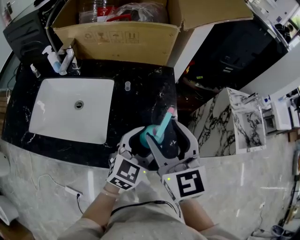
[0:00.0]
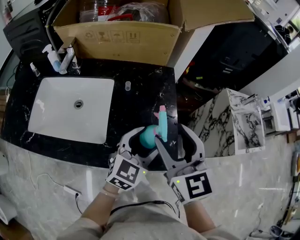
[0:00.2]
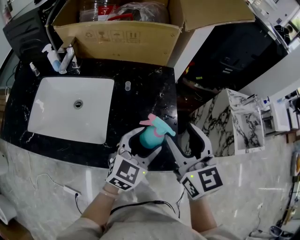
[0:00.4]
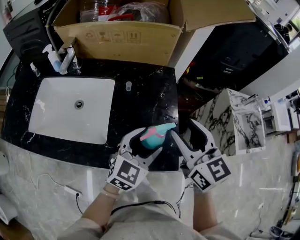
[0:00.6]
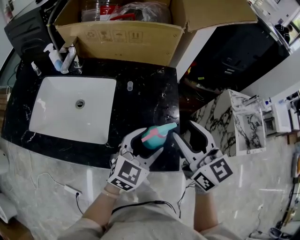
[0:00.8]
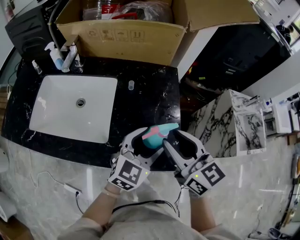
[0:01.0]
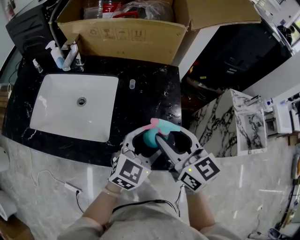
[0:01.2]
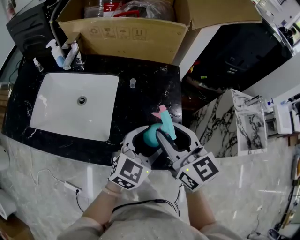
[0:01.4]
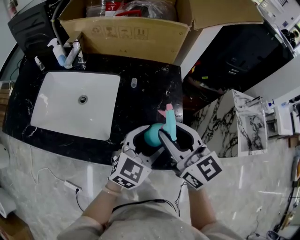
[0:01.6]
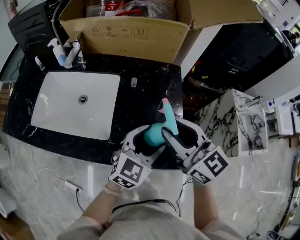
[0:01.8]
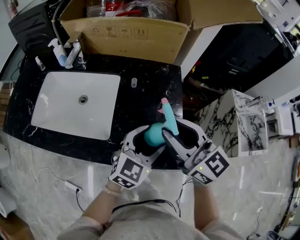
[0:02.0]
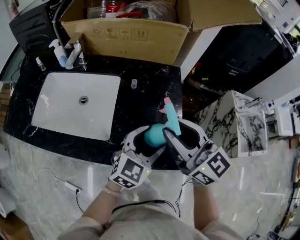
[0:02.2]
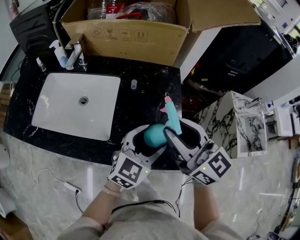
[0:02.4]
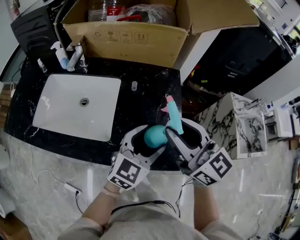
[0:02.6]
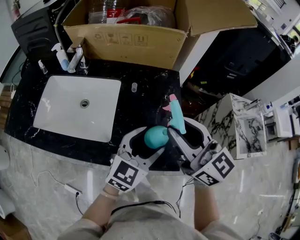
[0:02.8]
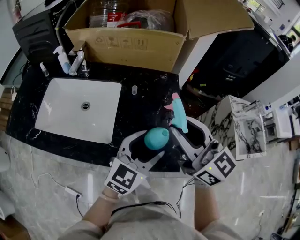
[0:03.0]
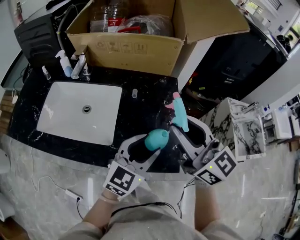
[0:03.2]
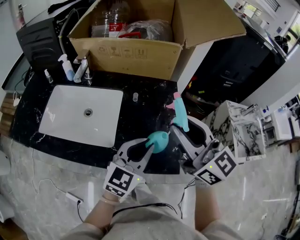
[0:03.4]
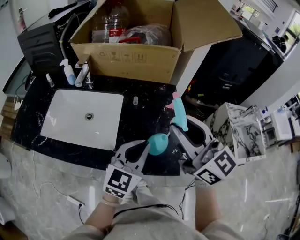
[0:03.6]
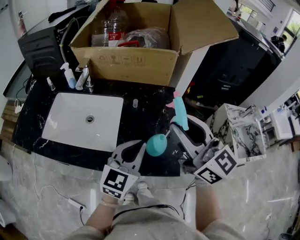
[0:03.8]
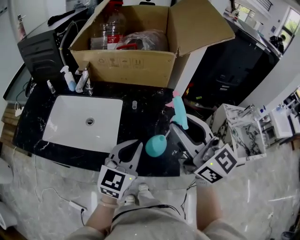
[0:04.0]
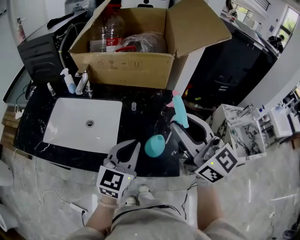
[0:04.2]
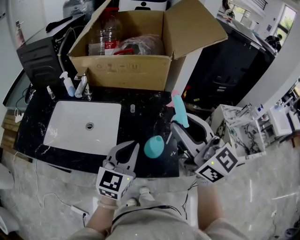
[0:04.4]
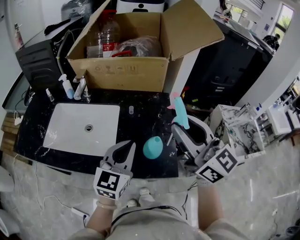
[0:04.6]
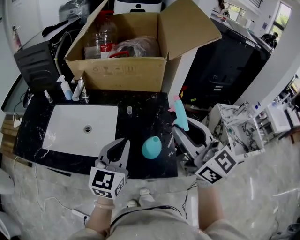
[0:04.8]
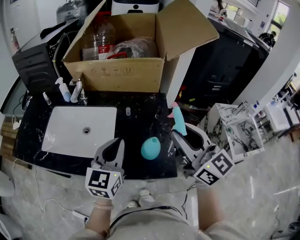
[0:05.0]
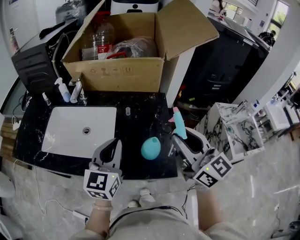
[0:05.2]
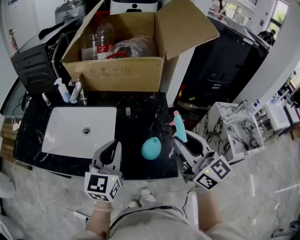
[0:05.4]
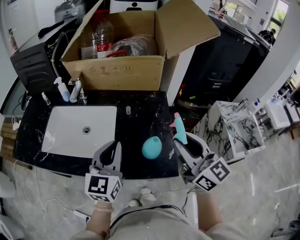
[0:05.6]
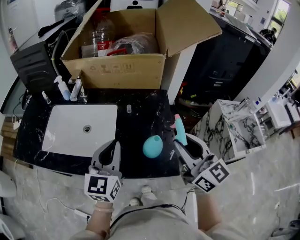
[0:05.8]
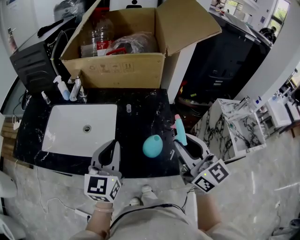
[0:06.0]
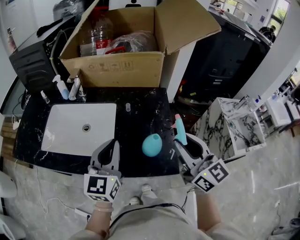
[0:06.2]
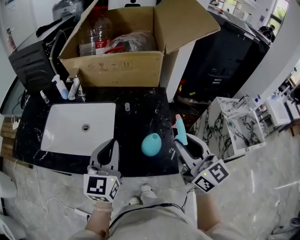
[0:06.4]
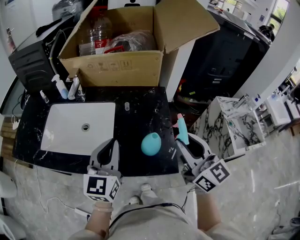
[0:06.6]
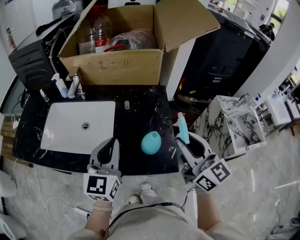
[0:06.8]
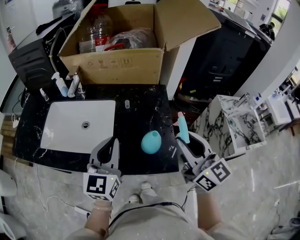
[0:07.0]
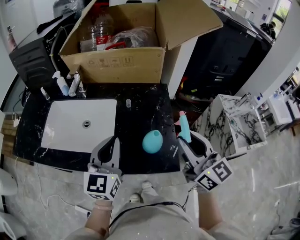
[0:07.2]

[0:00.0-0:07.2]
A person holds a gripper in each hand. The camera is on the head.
0:00.0 to 0:01.4: The right gripper closes up.
0:01.4 to 0:02.8: The right gripper is displaced upward by about 5 cm.
0:02.8 to 0:04.4: The left gripper is displaced to the left and upward by roughly 10 cm, and closes its fingers. The right gripper shifts approximately 10 cm upward.
0:04.4 to 0:05.8: The left gripper is displaced to the left by roughly 5 cm; the right gripper goes approximately 10 cm downward.
0:05.8 to 0:07.2: The grippers make only small movements.

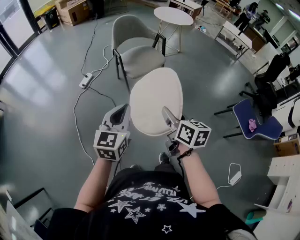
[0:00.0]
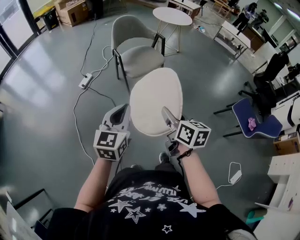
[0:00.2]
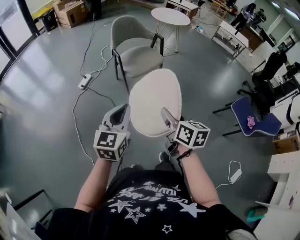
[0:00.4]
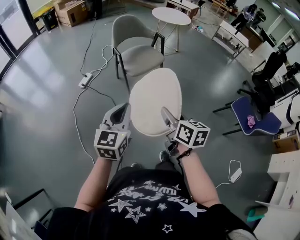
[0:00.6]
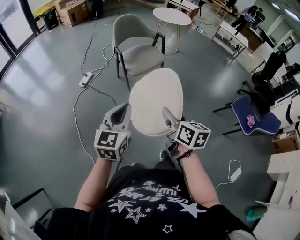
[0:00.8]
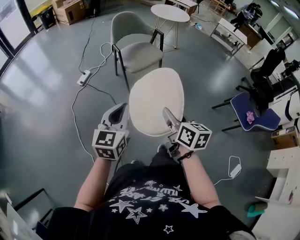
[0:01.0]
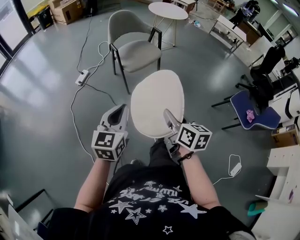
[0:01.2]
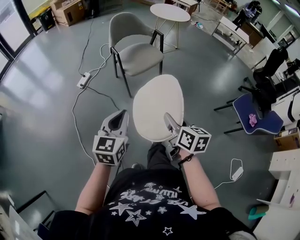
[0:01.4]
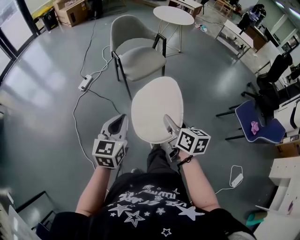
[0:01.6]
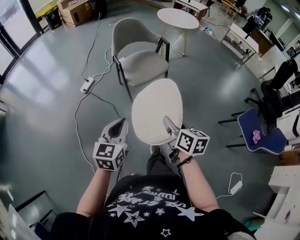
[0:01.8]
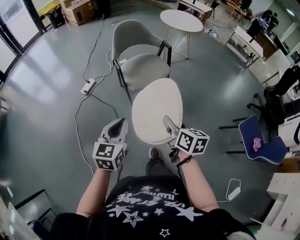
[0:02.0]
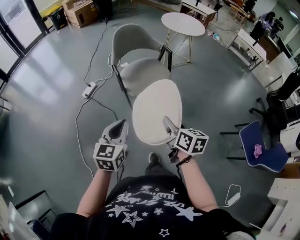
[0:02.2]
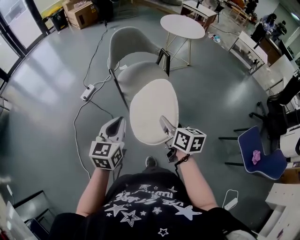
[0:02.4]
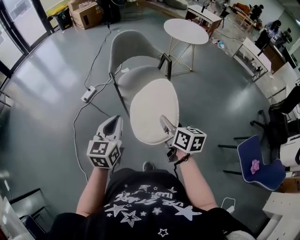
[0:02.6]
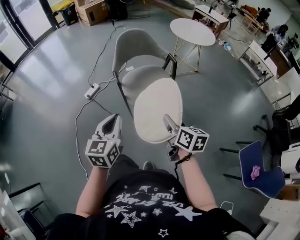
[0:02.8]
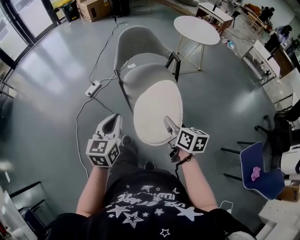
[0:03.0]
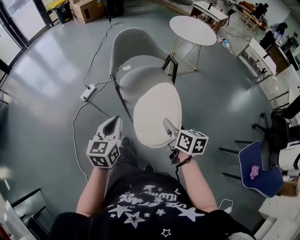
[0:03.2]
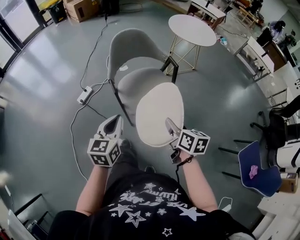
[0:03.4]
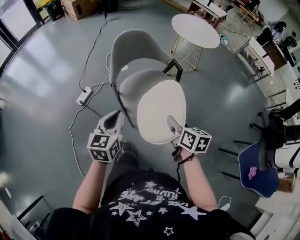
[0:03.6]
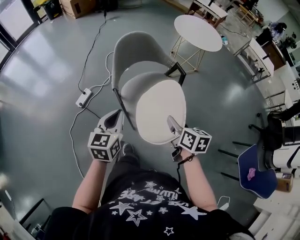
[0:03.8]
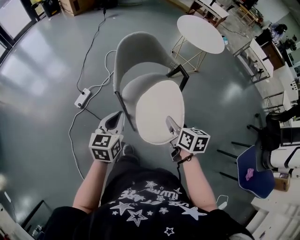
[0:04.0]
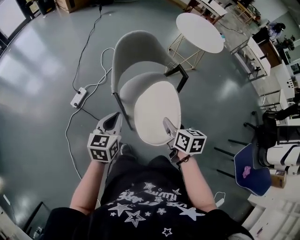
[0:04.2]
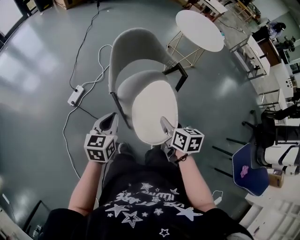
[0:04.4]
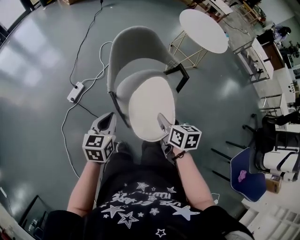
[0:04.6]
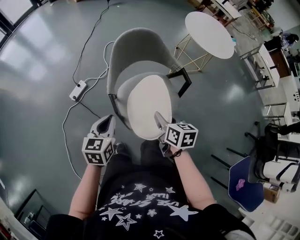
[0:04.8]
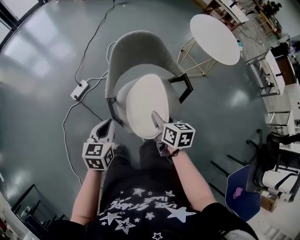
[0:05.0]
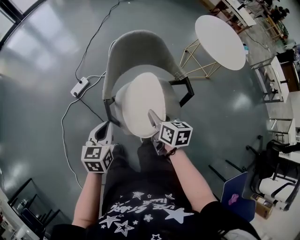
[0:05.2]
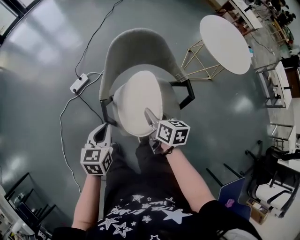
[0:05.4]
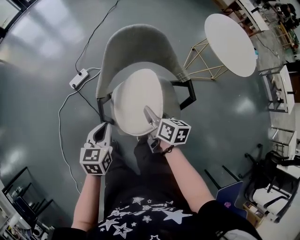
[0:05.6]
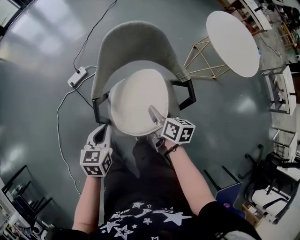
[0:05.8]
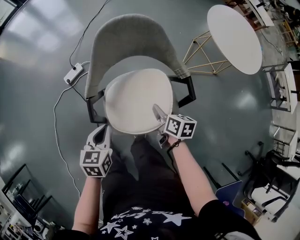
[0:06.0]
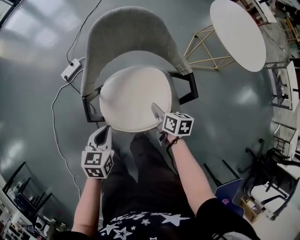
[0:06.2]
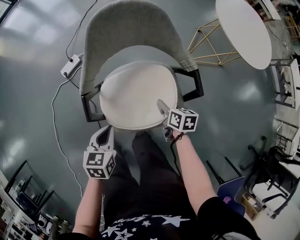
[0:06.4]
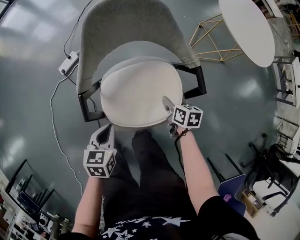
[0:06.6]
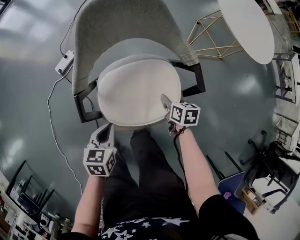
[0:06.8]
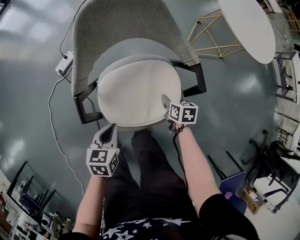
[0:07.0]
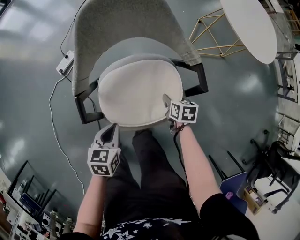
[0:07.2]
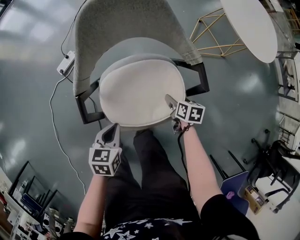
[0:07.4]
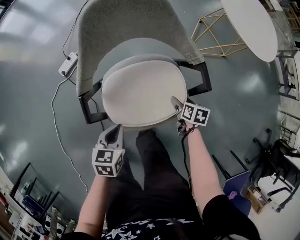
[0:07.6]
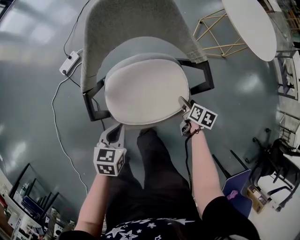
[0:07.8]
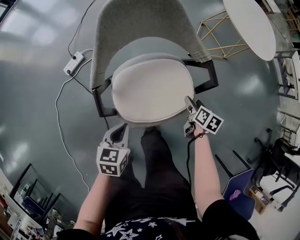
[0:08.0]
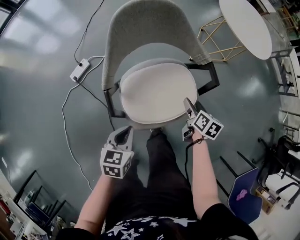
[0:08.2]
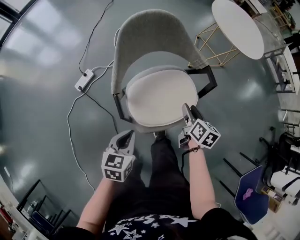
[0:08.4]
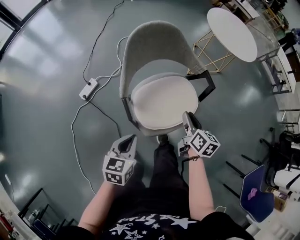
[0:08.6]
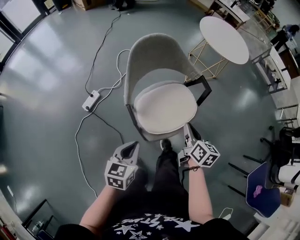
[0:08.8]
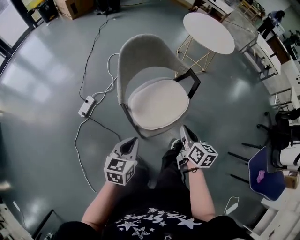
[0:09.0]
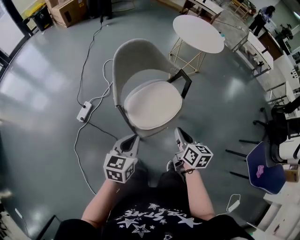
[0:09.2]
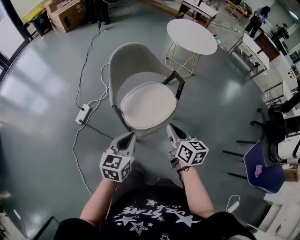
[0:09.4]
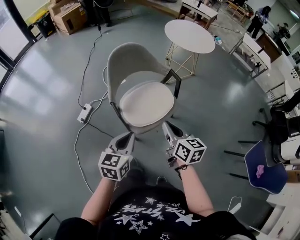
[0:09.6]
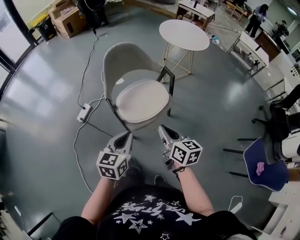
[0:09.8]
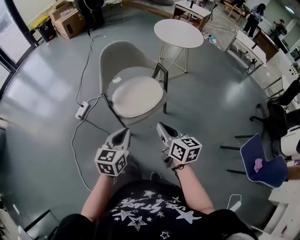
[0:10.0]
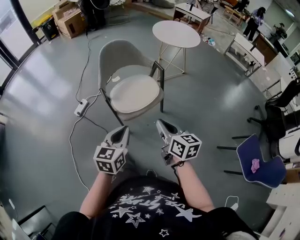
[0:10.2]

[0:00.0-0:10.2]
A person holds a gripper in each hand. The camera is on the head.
0:00.0 to 0:01.4: The left gripper moves roughly 5 cm. Meanwhile the right gripper ends up approximately 5 cm from where it was.
0:01.4 to 0:03.0: Both grippers travel together forward, about 30 cm.
0:03.0 to 0:04.4: The left gripper is displaced forward and downward by roughly 30 cm; the right gripper shifts approximately 20 cm forward.
0:04.4 to 0:05.8: The left gripper is displaced downward and to the right by roughly 15 cm, and turns by roughly 30 degrees, while the right gripper travels forward, downward and to the right by roughly 20 cm, and turns by about 20 degrees.
0:05.8 to 0:07.2: The left gripper shifts roughly 10 cm downward; the right gripper shifts roughly 25 cm downward and to the right, and changes its angle by roughly 30 degrees.
0:07.2 to 0:08.8: The left gripper shifts approximately 15 cm upward, and rotates about 30 degrees. The right gripper travels upward by some 25 cm, changes its angle by approximately 40 degrees, and opens, then closes once more.
0:08.8 to 0:10.2: The left gripper heads to the right, upward and backward, covering approximately 25 cm, while the right gripper goes approximately 25 cm backward and upward.

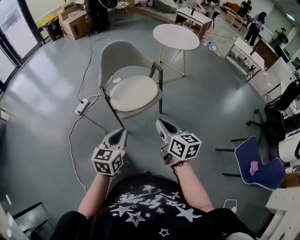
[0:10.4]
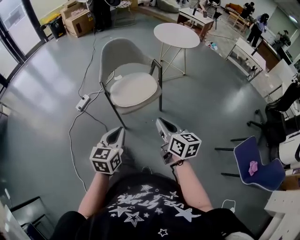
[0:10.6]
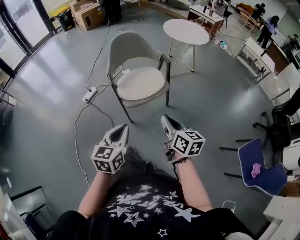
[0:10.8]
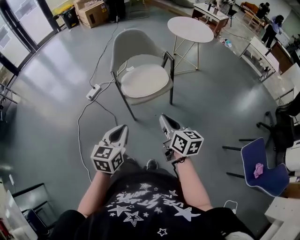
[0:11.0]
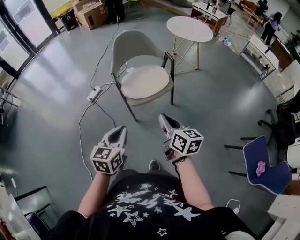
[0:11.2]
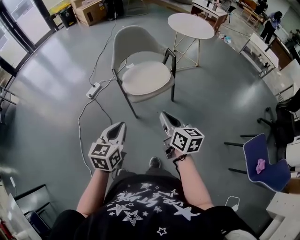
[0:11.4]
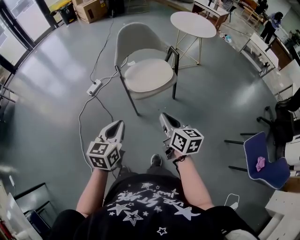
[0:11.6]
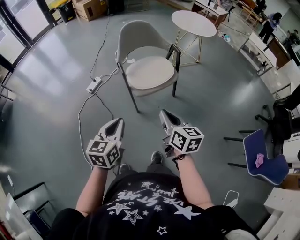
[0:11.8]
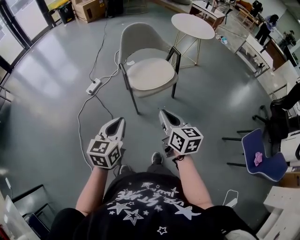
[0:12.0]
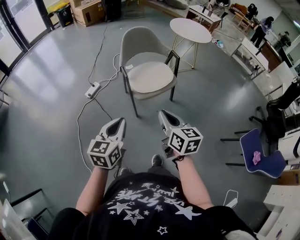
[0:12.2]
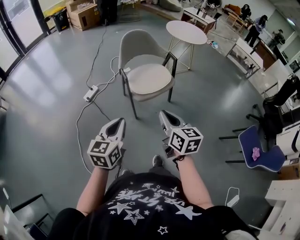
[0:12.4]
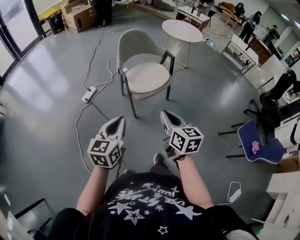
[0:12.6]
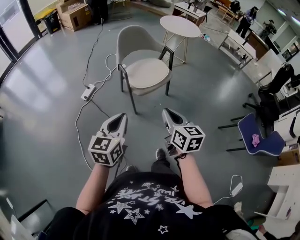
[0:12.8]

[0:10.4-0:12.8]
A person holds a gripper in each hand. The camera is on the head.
0:10.4 to 0:11.6: The left gripper moves to the left and backward, roughly 10 cm; the right gripper is displaced backward and to the left by approximately 10 cm.
0:11.6 to 0:12.8: The right gripper goes roughly 15 cm to the left, backward and upward, while the left gripper moves to the left, roughly 10 cm.

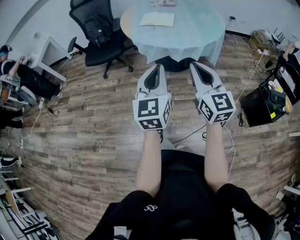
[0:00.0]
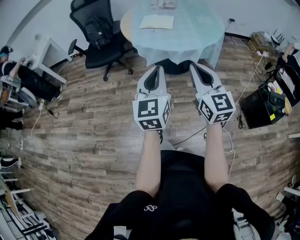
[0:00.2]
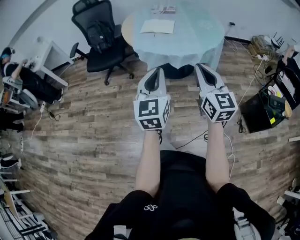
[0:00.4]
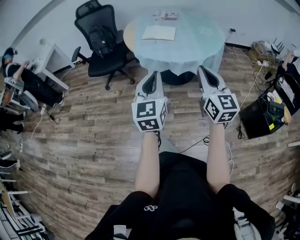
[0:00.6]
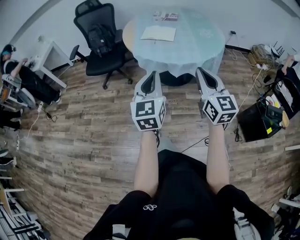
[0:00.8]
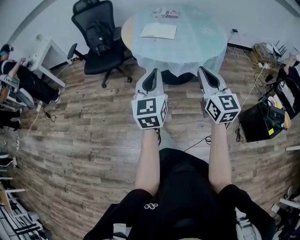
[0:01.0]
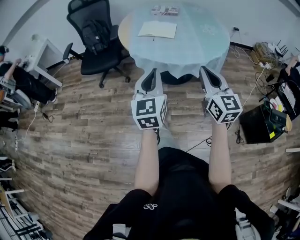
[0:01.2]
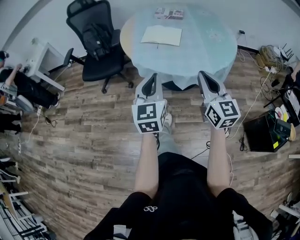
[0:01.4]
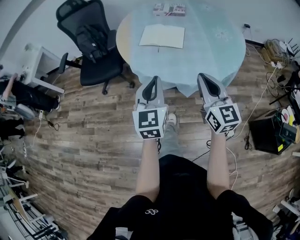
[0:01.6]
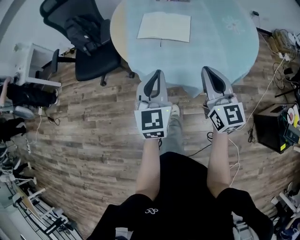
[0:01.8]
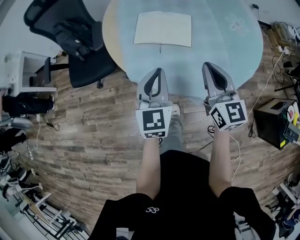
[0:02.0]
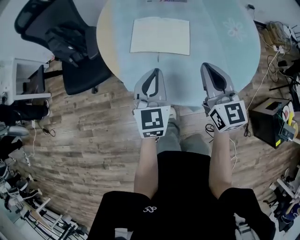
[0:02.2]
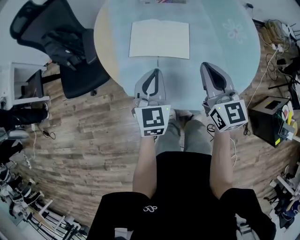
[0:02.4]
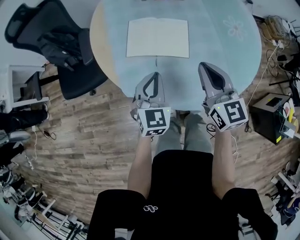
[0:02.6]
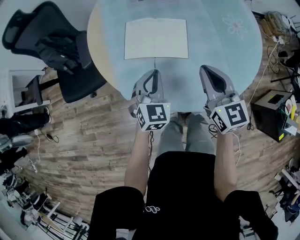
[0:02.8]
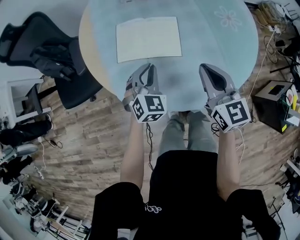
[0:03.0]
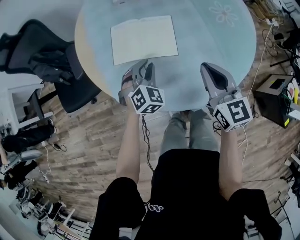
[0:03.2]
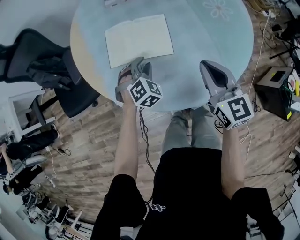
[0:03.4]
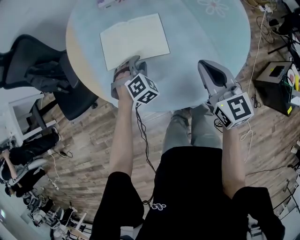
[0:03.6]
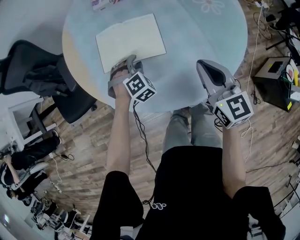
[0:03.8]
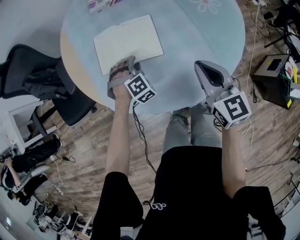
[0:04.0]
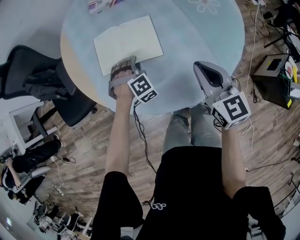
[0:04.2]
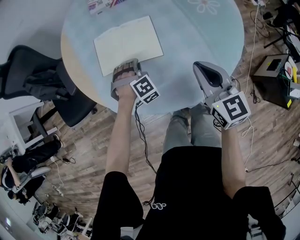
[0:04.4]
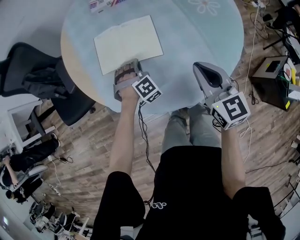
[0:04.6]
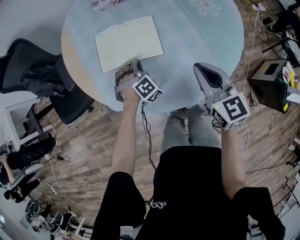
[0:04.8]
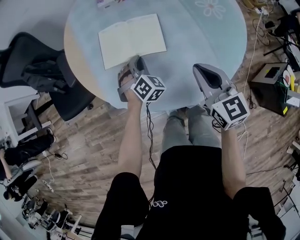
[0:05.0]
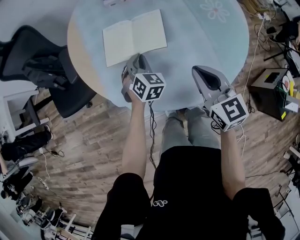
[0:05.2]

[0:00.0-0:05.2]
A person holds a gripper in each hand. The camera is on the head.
0:00.0 to 0:01.8: Both grippers are carried forward, approximately 40 cm.
0:01.8 to 0:03.4: The right gripper heads forward and downward, covering approximately 15 cm. Meanwhile the left gripper is displaced forward and downward by roughly 35 cm, tips its fingers downward by about 40 degrees, and opens up.
0:03.4 to 0:05.2: The left gripper turns by approximately 30 degrees, and closes up.
